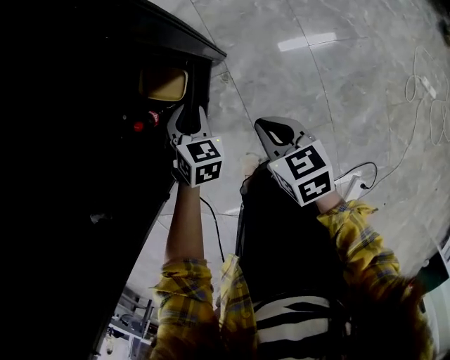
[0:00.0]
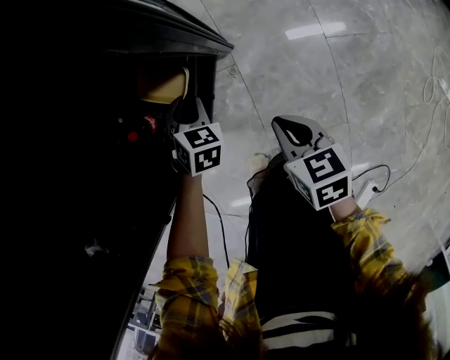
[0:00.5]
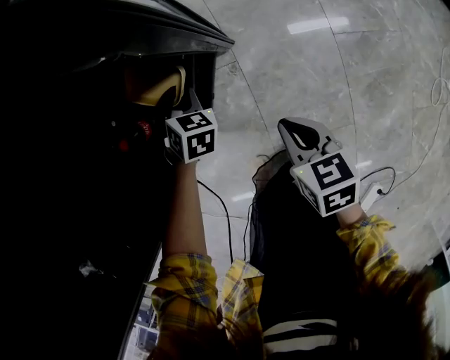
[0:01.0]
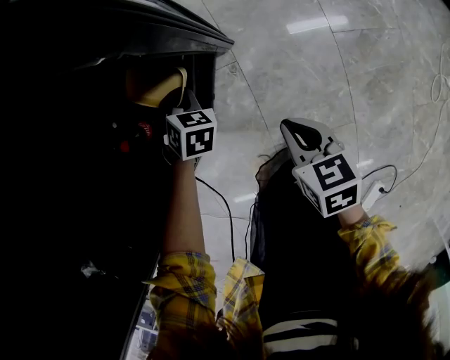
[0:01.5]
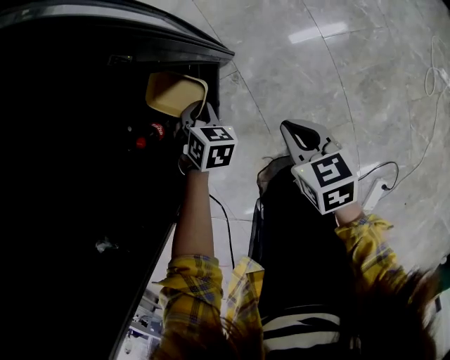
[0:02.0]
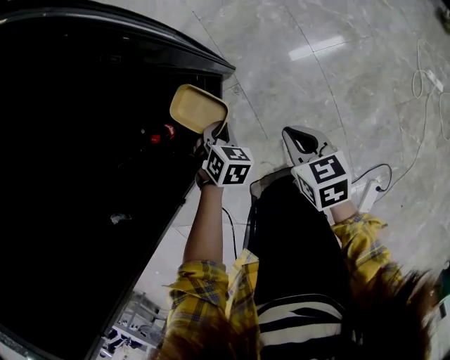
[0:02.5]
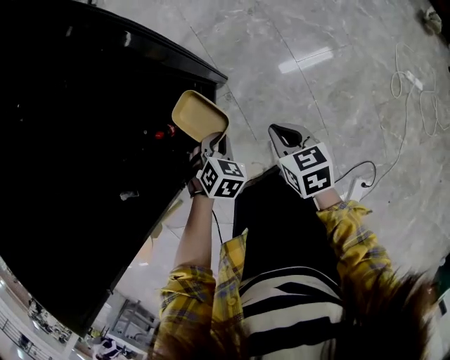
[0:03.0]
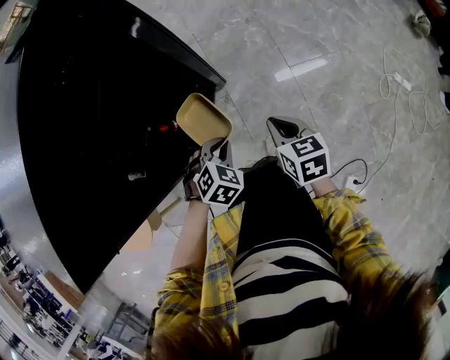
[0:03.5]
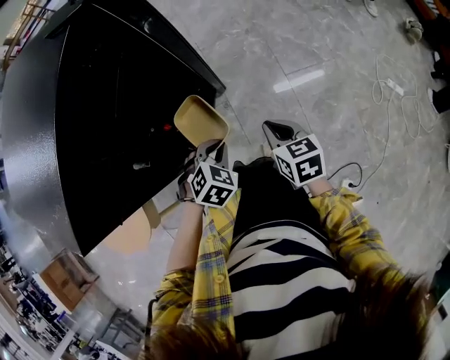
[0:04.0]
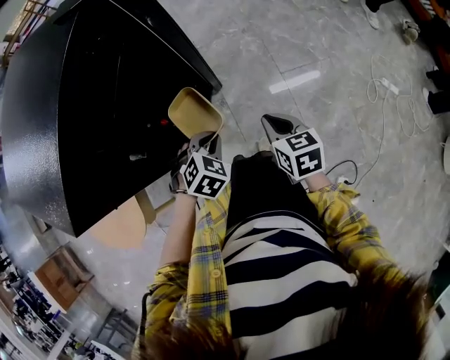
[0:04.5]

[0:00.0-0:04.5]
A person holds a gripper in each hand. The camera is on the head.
0:00.0 to 0:02.0: The right gripper travels downward by about 5 cm. The left gripper is displaced downward by some 10 cm.
0:02.0 to 0:04.5: Both grippers travel together upward, roughly 25 cm. The left gripper rotates roughly 20 degrees.

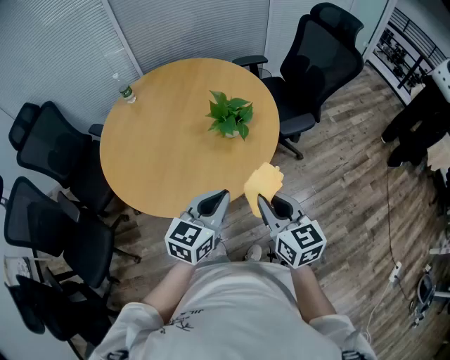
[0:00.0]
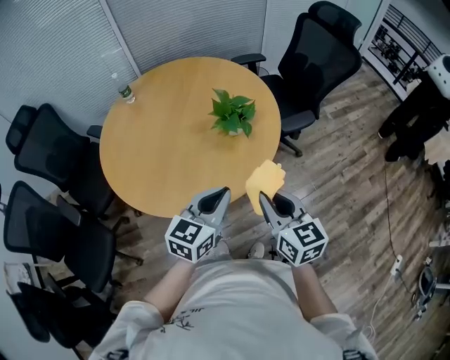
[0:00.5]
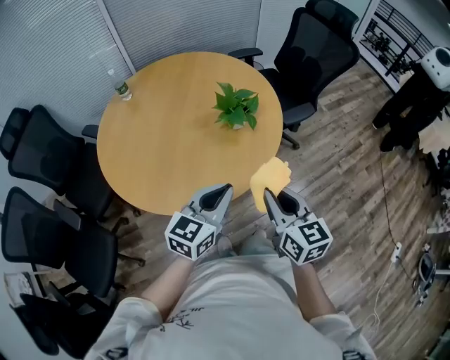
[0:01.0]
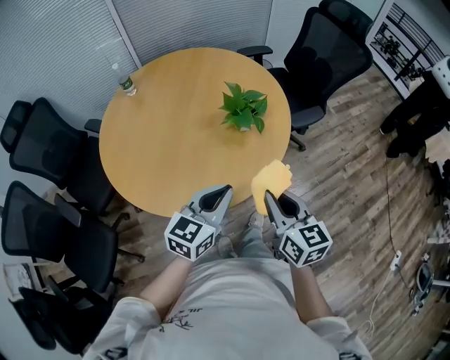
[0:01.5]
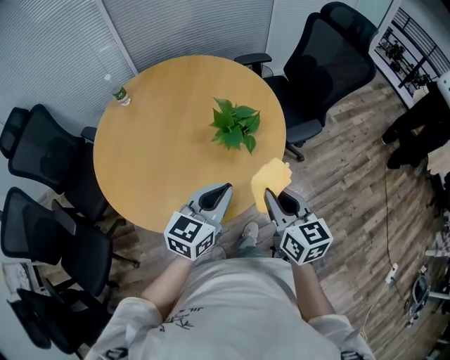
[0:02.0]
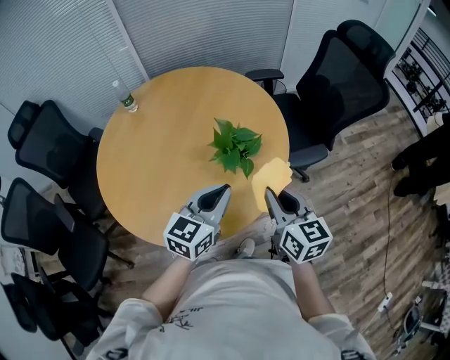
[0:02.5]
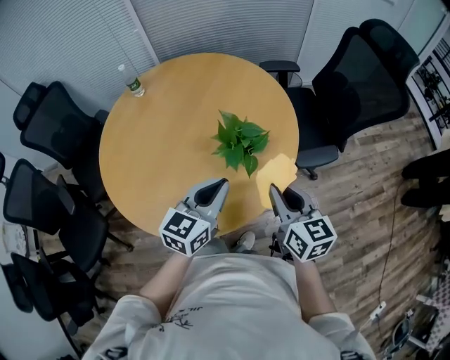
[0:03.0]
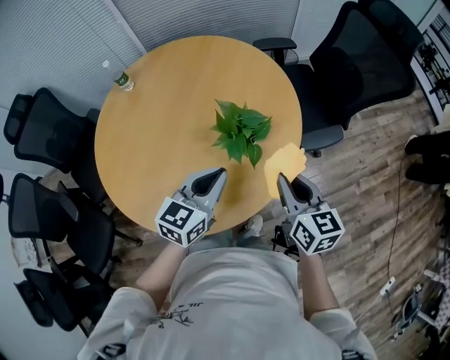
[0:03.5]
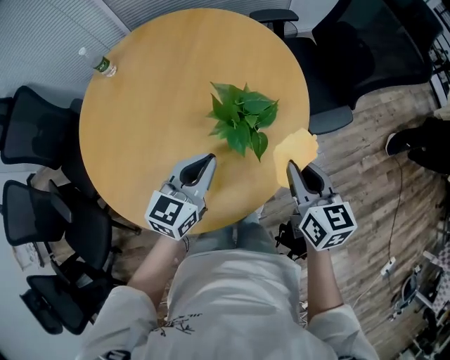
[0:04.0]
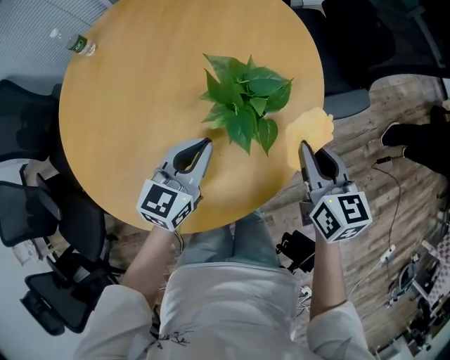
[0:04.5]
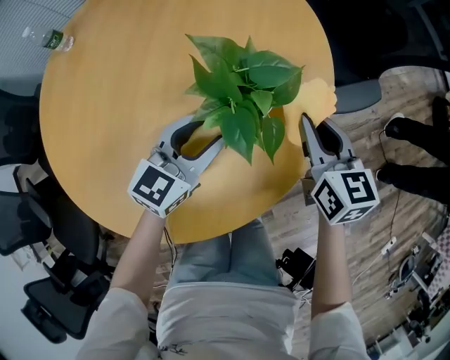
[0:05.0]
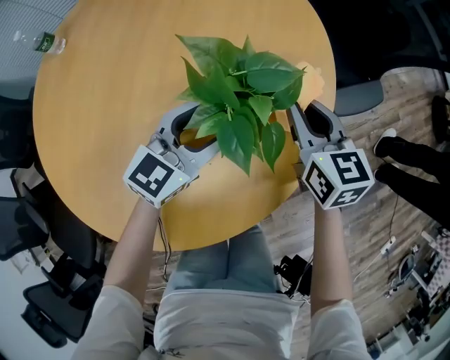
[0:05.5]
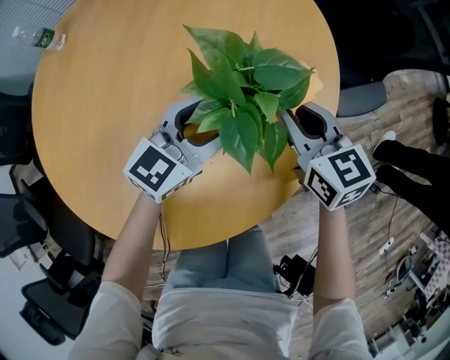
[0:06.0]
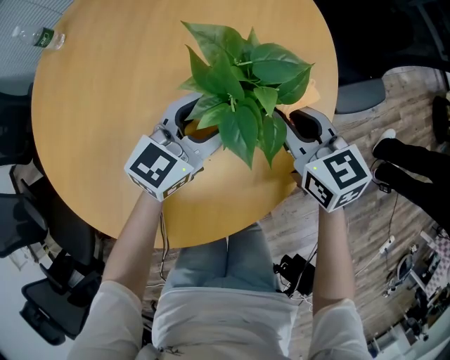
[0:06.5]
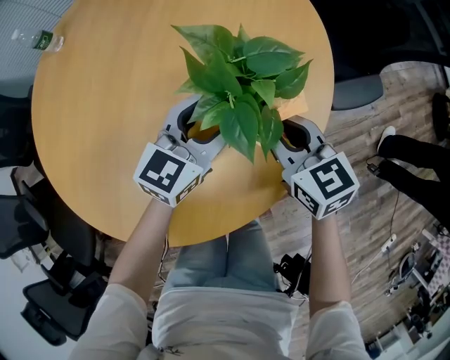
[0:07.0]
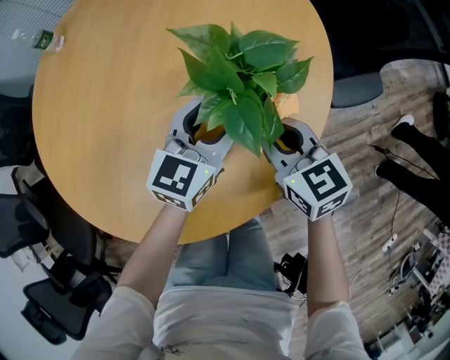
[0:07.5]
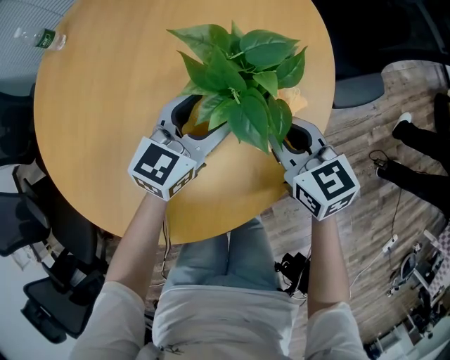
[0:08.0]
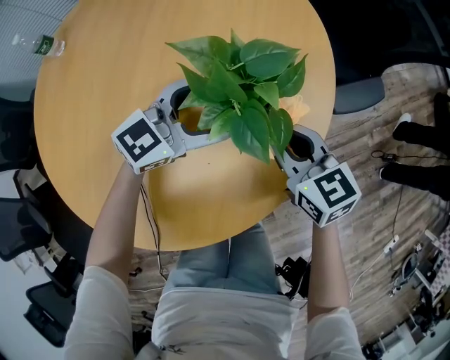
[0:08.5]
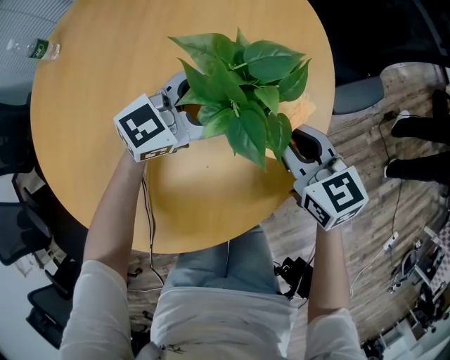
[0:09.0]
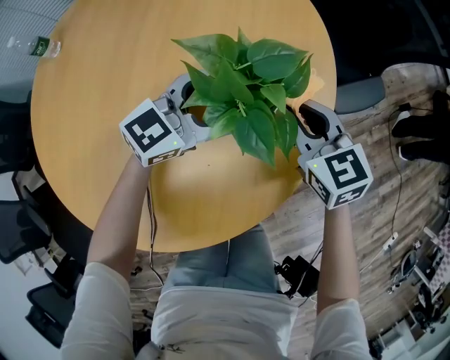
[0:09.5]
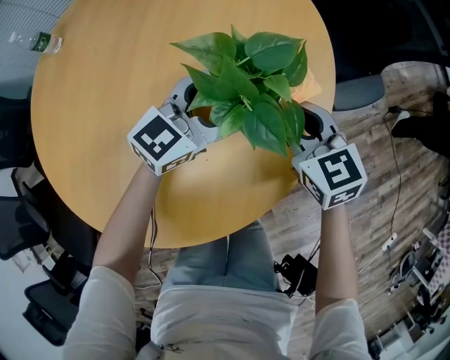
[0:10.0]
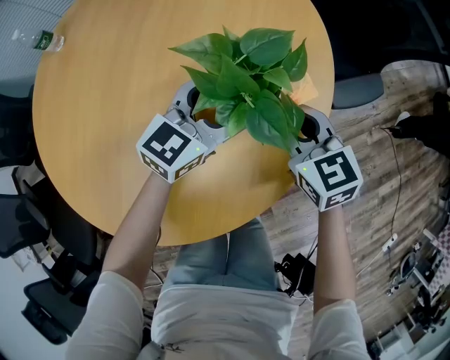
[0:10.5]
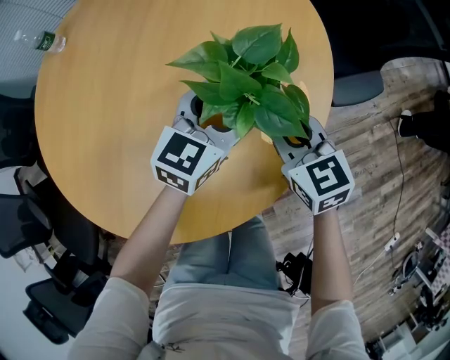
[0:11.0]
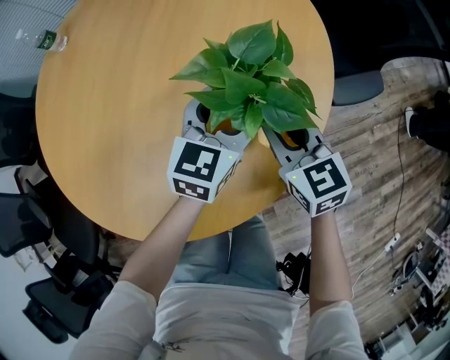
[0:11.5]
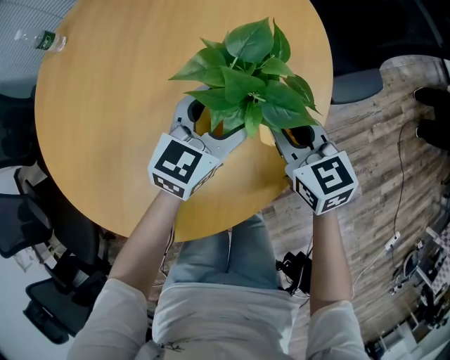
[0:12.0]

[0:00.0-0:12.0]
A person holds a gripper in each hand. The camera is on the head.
0:00.0 to 0:02.0: The two grippers go some 10 cm forward.
0:02.0 to 0:04.0: The two grippers go approximately 15 cm forward and downward.
0:04.0 to 0:06.0: The right gripper moves downward, forward and to the left, about 20 cm, while the left gripper travels downward and forward by roughly 15 cm, and opens.
0:06.0 to 0:08.0: The right gripper goes about 5 cm backward.

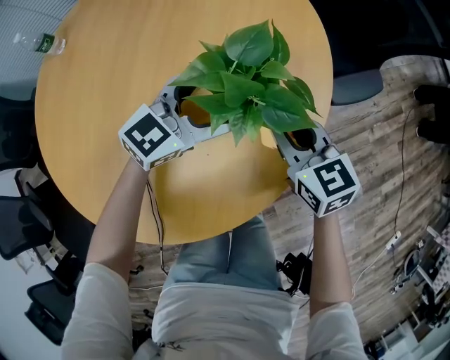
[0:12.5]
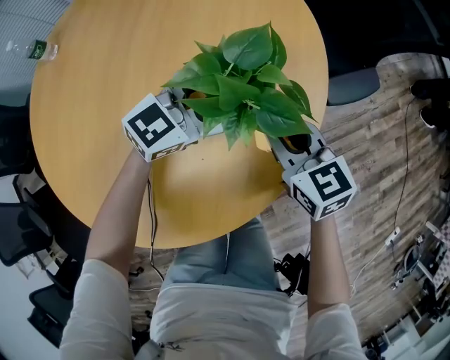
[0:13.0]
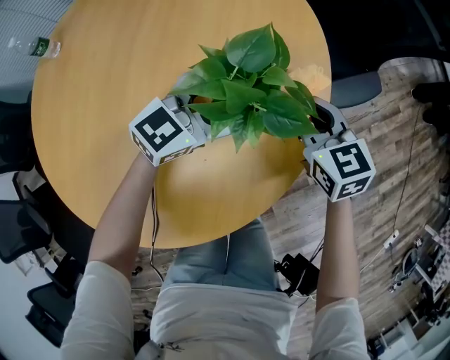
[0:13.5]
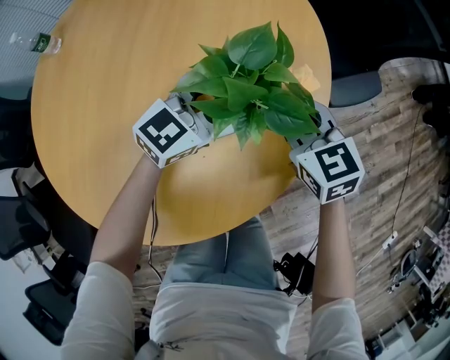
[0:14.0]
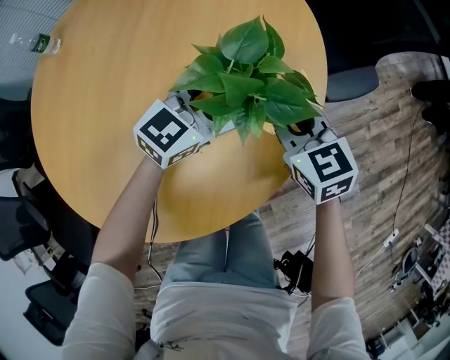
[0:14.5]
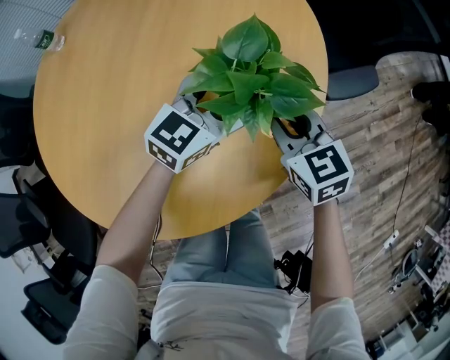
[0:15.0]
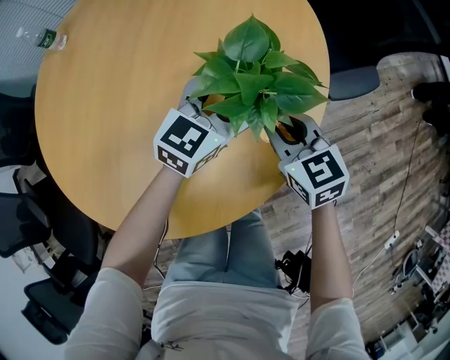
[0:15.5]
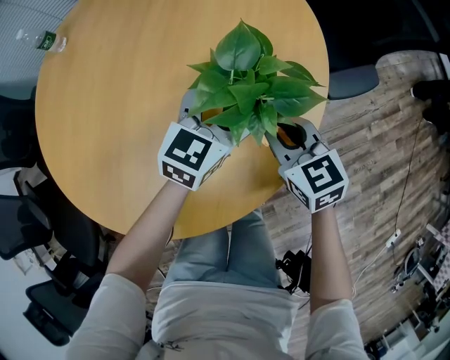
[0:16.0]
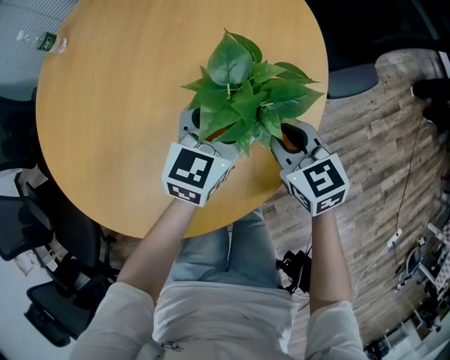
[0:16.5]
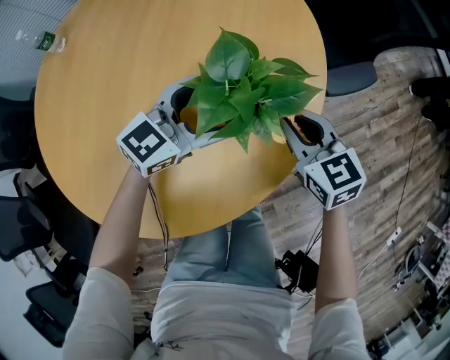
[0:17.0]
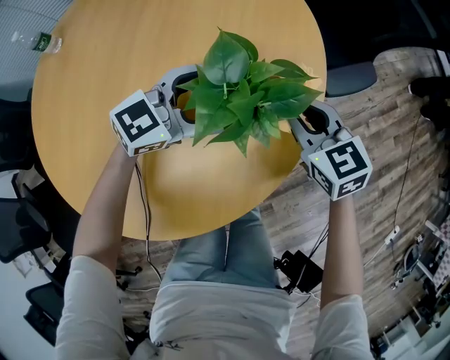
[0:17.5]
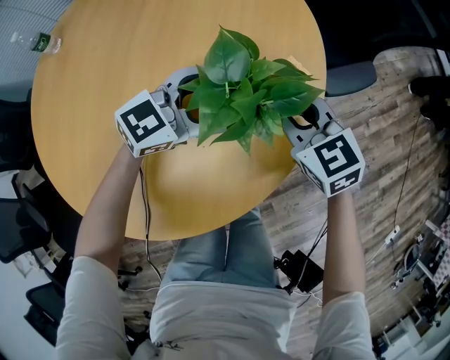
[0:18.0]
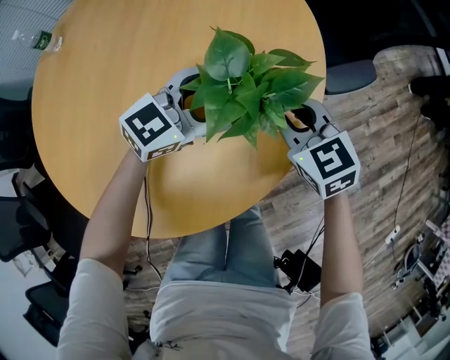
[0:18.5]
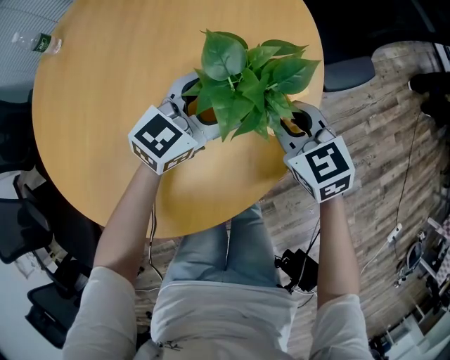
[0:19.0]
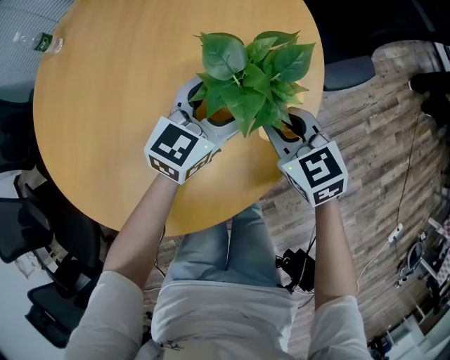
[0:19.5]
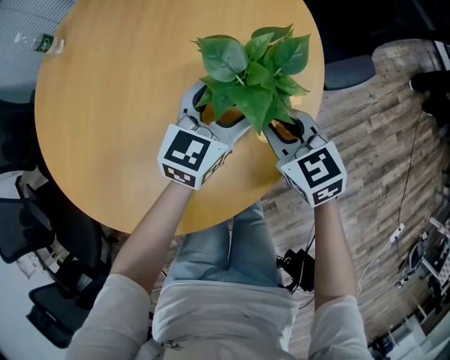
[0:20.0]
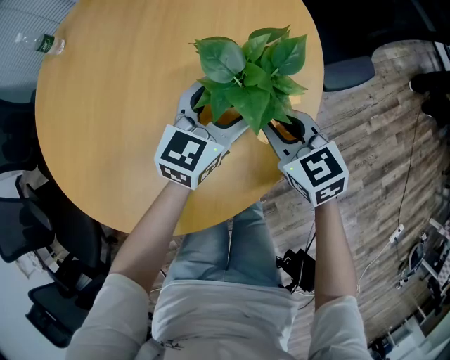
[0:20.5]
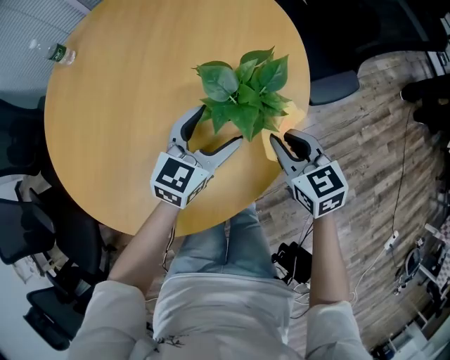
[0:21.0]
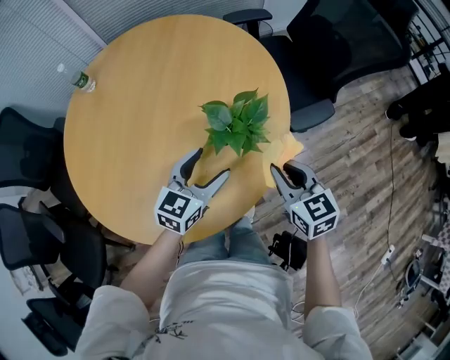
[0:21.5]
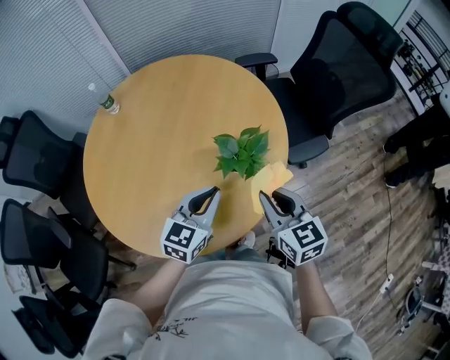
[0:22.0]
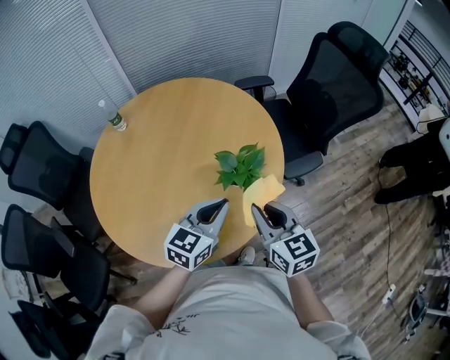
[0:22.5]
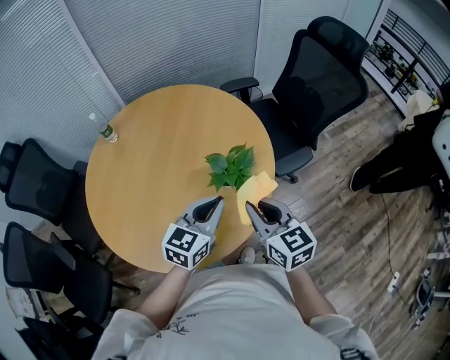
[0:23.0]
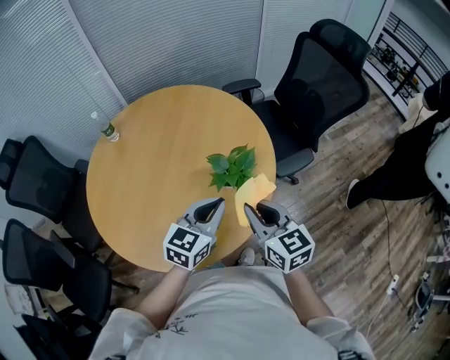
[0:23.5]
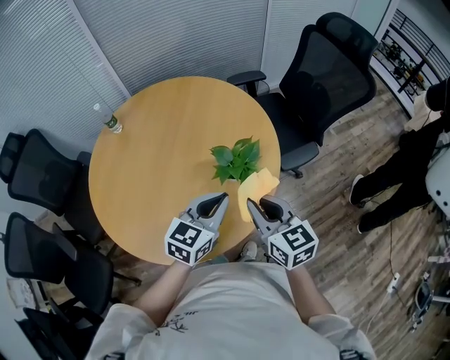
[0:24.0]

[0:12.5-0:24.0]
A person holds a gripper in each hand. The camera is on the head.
0:12.5 to 0:14.5: The grippers stay close to where they were, moving slightly.
0:14.5 to 0:16.5: The left gripper swivels approximately 20 degrees, while the right gripper is displaced backward by roughly 5 cm.
0:16.5 to 0:18.5: The left gripper turns by some 30 degrees.
0:18.5 to 0:20.0: The left gripper turns by some 30 degrees.
0:20.0 to 0:22.0: The left gripper goes approximately 20 cm upward and backward, and closes, while the right gripper heads upward, covering some 20 cm.
0:22.0 to 0:24.0: The right gripper shifts by roughly 5 cm. The left gripper travels upward by roughly 5 cm.
